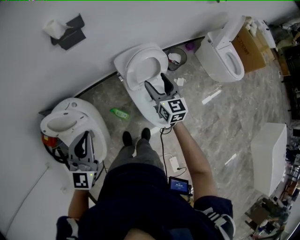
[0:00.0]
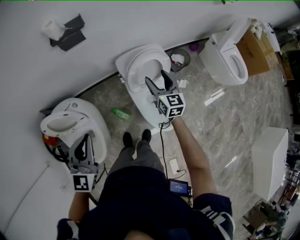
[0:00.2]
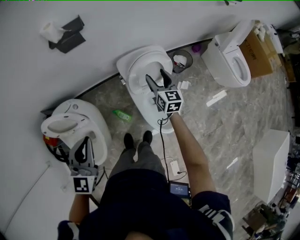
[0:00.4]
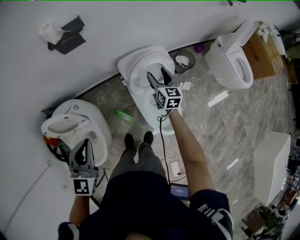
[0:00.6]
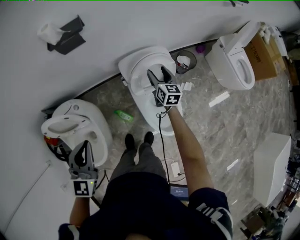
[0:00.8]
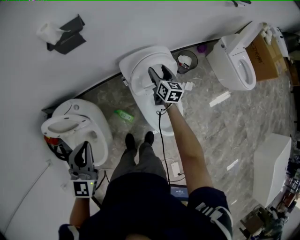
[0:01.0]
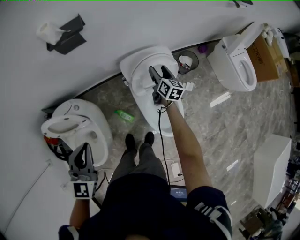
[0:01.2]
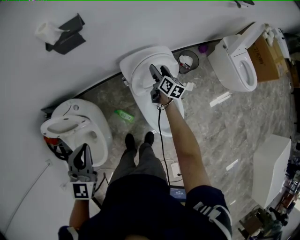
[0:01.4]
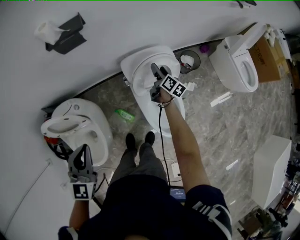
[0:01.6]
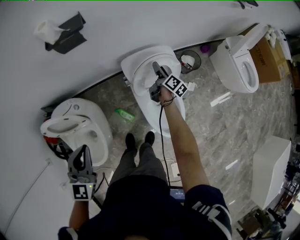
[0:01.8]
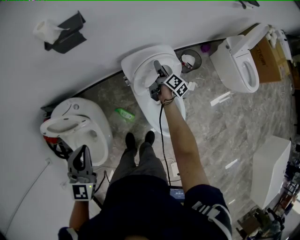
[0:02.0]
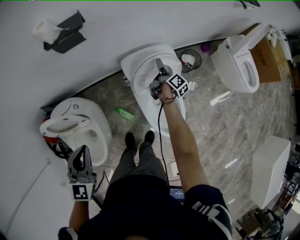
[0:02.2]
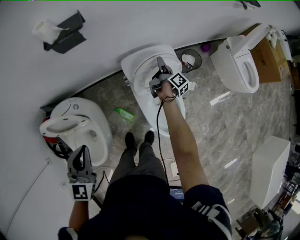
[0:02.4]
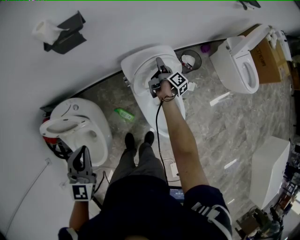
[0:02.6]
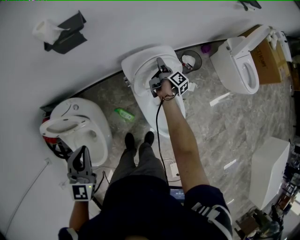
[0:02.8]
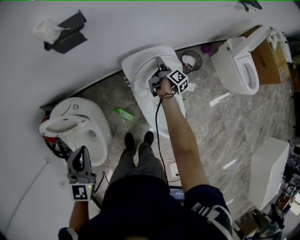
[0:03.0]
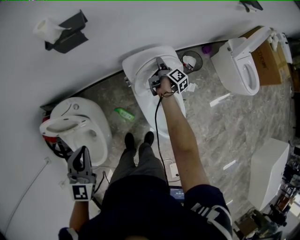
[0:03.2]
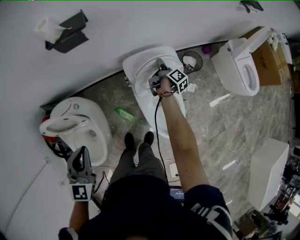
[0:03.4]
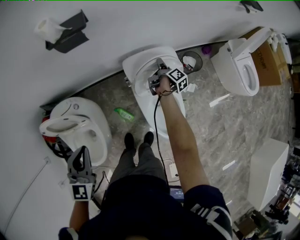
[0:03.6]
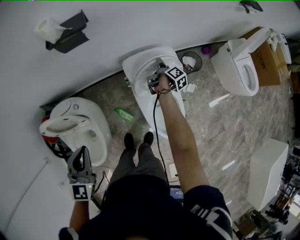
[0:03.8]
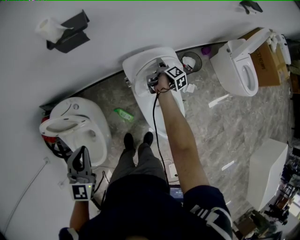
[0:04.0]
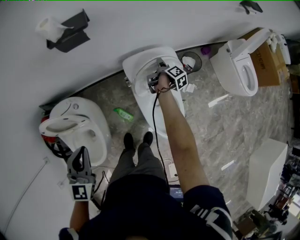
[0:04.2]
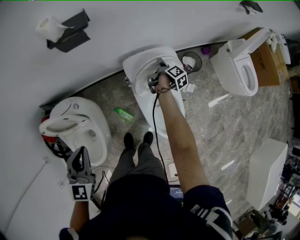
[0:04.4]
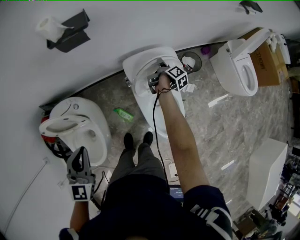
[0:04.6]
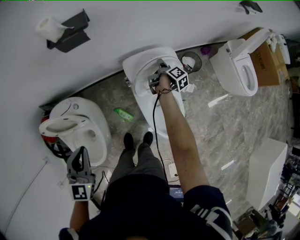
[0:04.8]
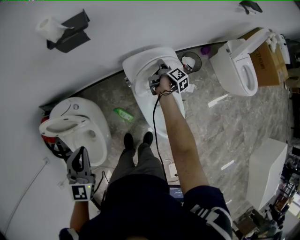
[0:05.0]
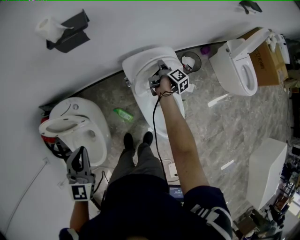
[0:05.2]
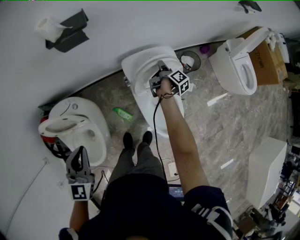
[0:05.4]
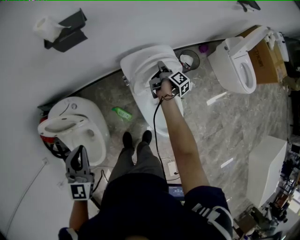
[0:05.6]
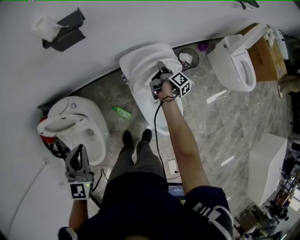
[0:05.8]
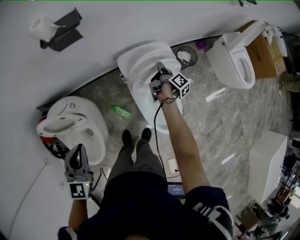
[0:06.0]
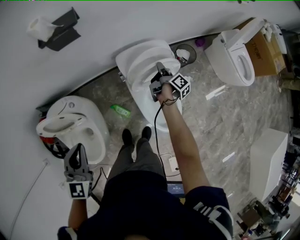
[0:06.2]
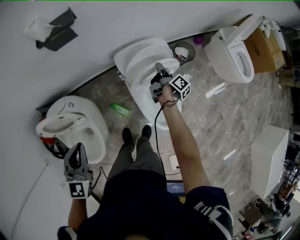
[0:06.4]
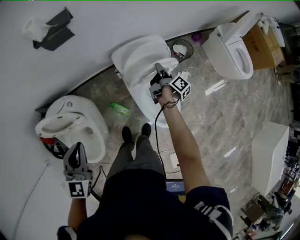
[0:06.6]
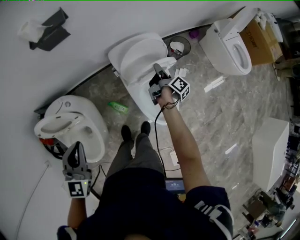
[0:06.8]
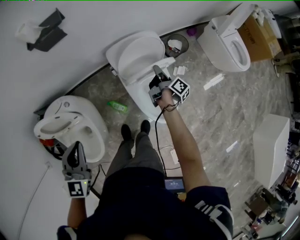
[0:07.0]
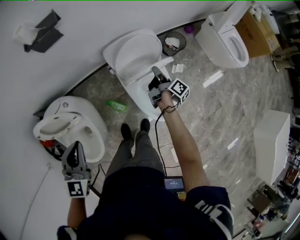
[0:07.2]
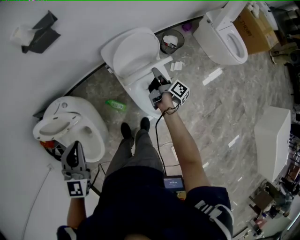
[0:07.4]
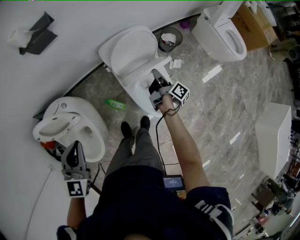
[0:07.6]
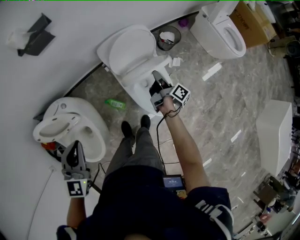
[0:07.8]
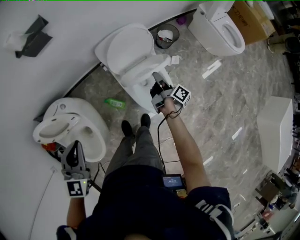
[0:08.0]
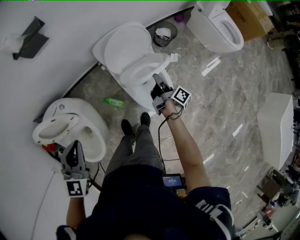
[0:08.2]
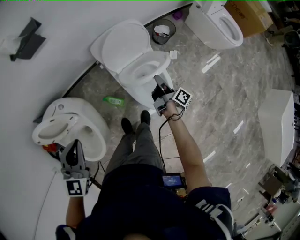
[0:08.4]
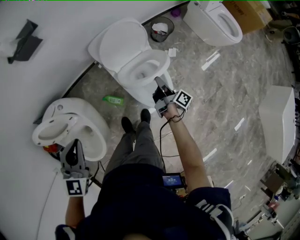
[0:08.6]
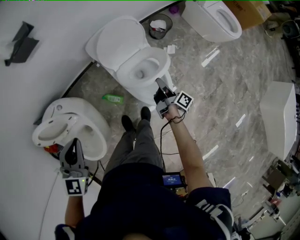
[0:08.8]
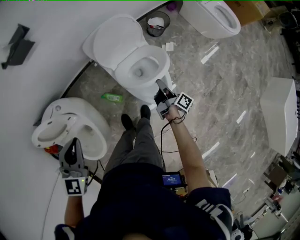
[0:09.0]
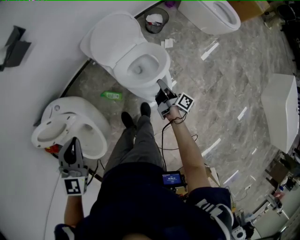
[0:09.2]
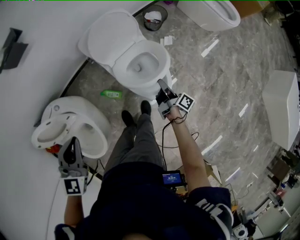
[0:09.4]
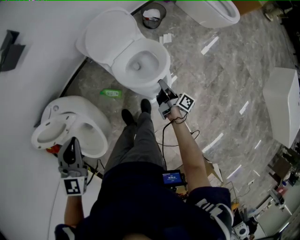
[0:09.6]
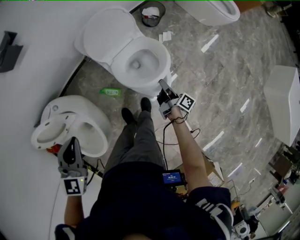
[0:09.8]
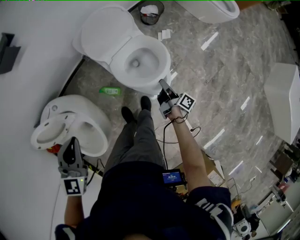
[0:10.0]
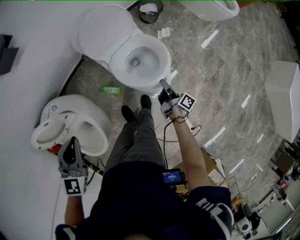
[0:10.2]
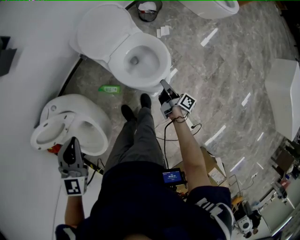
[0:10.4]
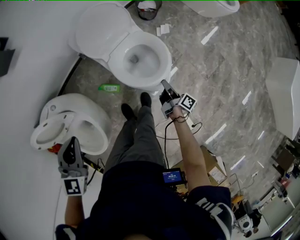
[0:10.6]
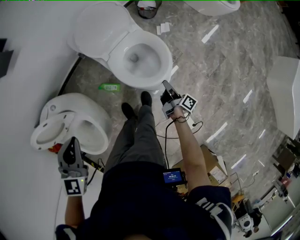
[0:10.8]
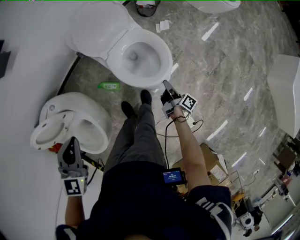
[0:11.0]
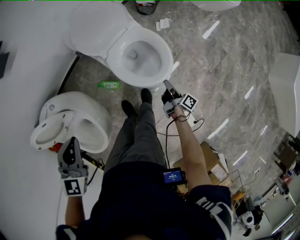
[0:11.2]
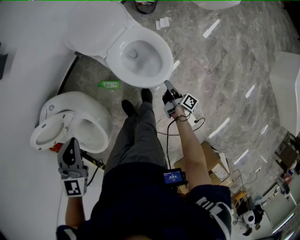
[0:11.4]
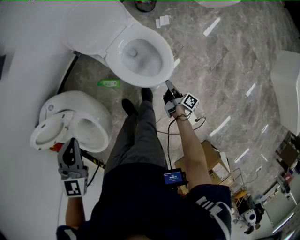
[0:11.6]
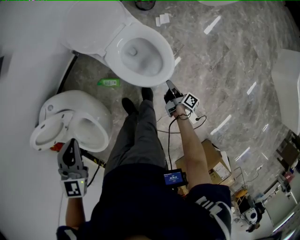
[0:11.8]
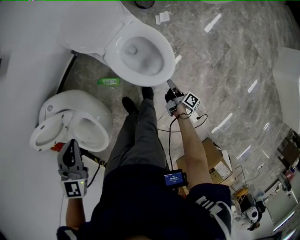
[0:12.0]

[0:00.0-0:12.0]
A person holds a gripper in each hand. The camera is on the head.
0.0 to 1.6 s: The right gripper heads forward and downward, covering approximately 30 cm, and rolls clockwise, seen from behind, by roughly 50 degrees, while the left gripper goes roughly 10 cm downward and forward.
1.6 to 3.0 s: The right gripper swivels about 30 degrees.
3.0 to 4.4 s: The grippers move only a little.
4.4 to 6.0 s: The right gripper moves backward, about 5 cm.
6.0 to 7.6 s: The left gripper moves about 5 cm. Meanwhile the right gripper is displaced backward and to the right by about 15 cm.
7.6 to 9.0 s: The right gripper shifts approximately 15 cm backward, to the right and downward. Meanwhile the left gripper ends up some 5 cm from where it was.
9.0 to 10.4 s: The right gripper moves downward, backward and to the right, about 15 cm.
10.4 to 12.0 s: The left gripper travels downward by approximately 5 cm; the right gripper is displaced downward, backward and to the right by about 15 cm.

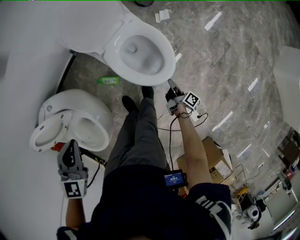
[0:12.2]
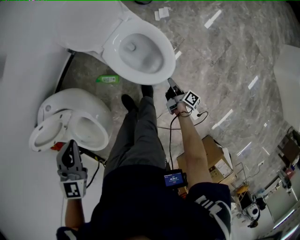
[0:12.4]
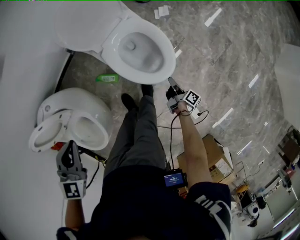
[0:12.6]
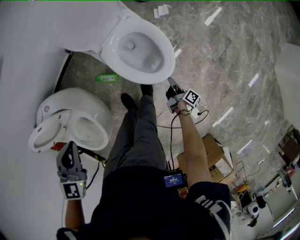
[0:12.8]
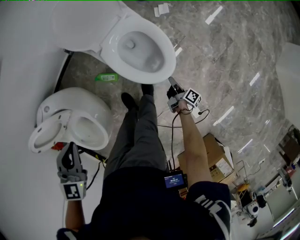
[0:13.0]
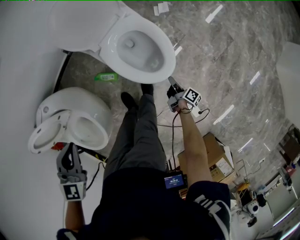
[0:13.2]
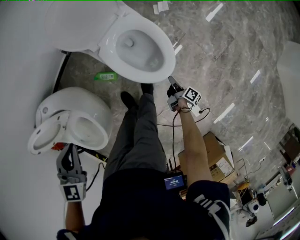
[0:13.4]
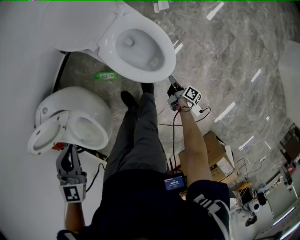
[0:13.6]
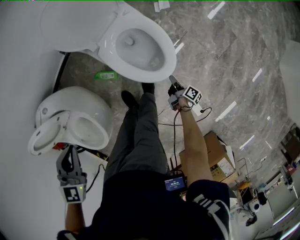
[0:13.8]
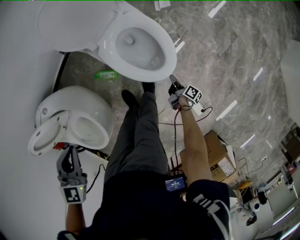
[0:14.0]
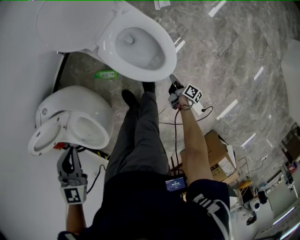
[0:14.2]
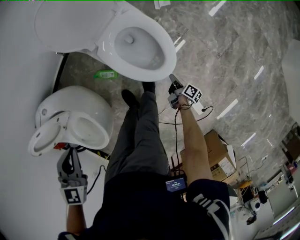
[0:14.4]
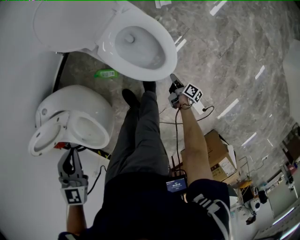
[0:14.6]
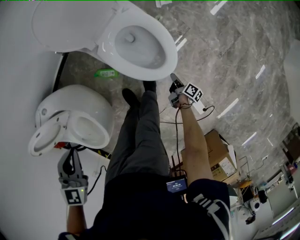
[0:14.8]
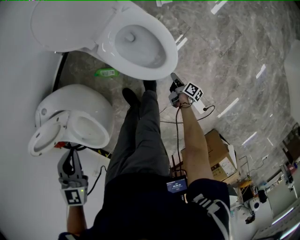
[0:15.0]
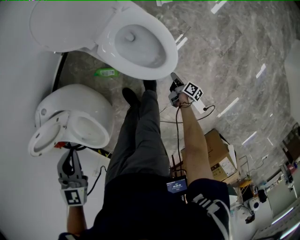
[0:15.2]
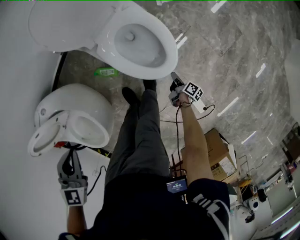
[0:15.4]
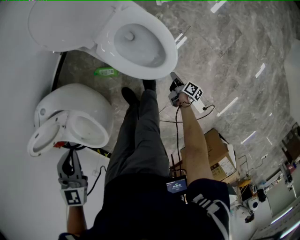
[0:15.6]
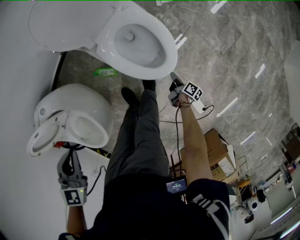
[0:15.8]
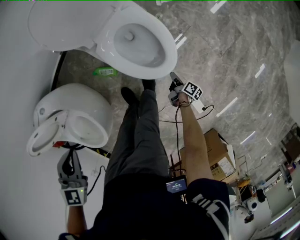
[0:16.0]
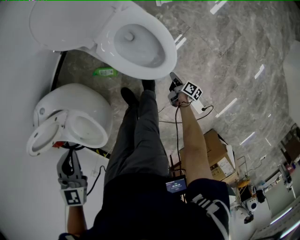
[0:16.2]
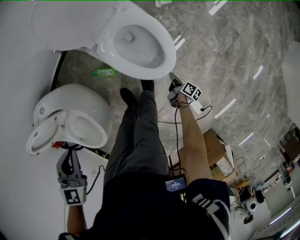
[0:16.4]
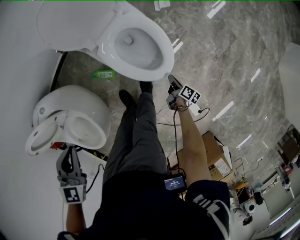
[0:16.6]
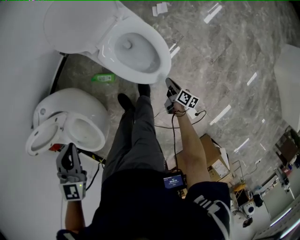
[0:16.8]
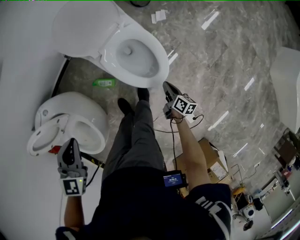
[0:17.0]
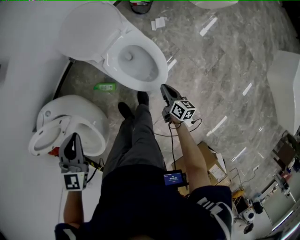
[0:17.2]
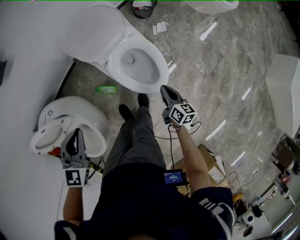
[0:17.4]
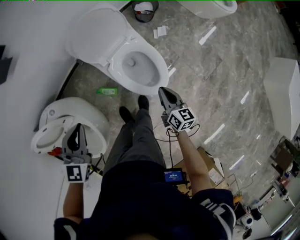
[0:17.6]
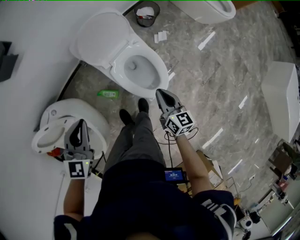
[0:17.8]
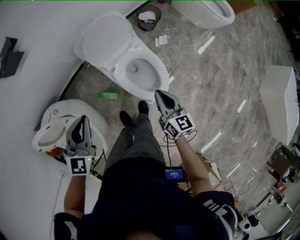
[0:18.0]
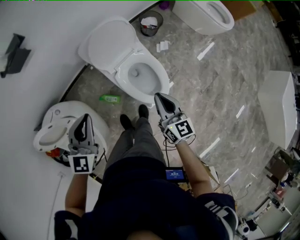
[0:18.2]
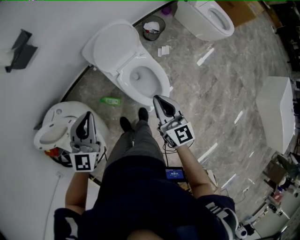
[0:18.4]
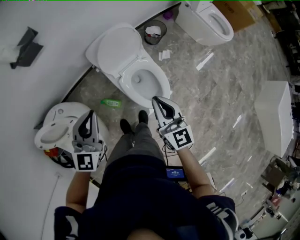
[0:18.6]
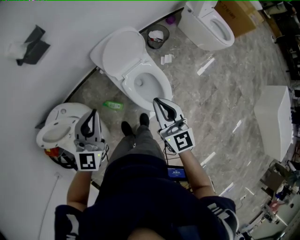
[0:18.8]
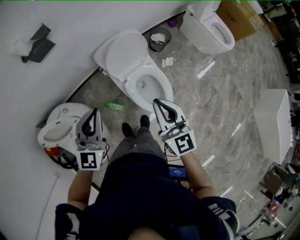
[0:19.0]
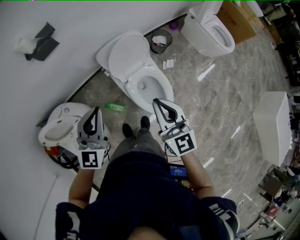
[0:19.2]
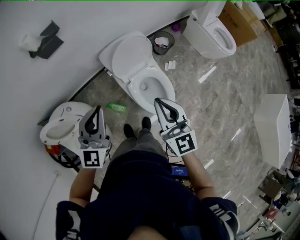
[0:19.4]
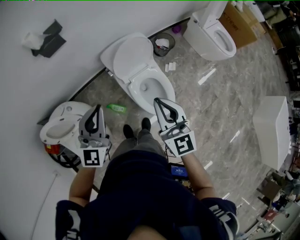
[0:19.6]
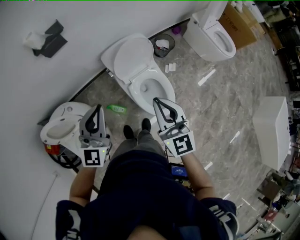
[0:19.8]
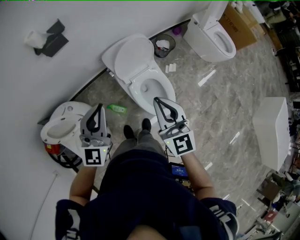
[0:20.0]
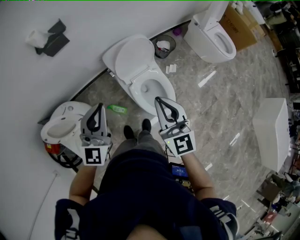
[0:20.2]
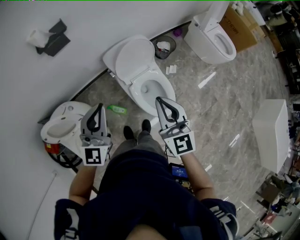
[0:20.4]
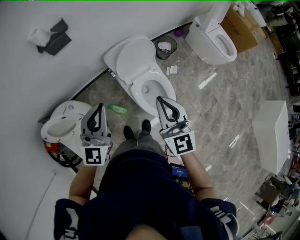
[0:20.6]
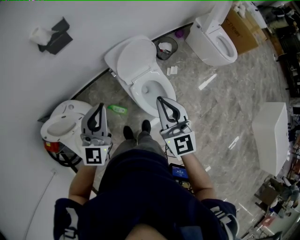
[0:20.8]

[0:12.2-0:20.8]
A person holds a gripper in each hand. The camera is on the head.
12.2 to 13.6 s: The right gripper moves downward, roughly 10 cm.
13.6 to 15.0 s: The right gripper heads downward, covering roughly 5 cm.
15.0 to 16.6 s: The grippers make only small movements.
16.6 to 18.0 s: The right gripper is displaced upward by about 40 cm, and rolls counterclockwise, seen from behind, by some 60 degrees. The left gripper goes some 15 cm upward and forward, and rotates some 30 degrees.
18.0 to 19.4 s: The right gripper is displaced upward and to the left by approximately 30 cm, and swivels some 30 degrees. The left gripper goes approximately 15 cm upward, and changes its angle by roughly 20 degrees.
19.4 to 20.8 s: The grippers make only small movements.

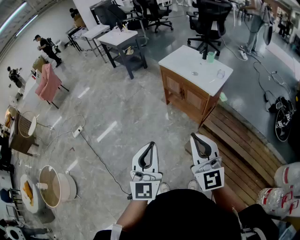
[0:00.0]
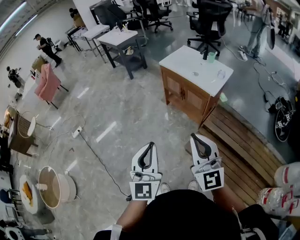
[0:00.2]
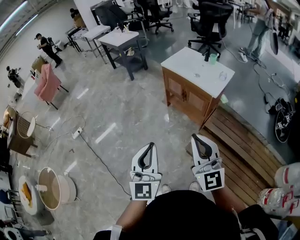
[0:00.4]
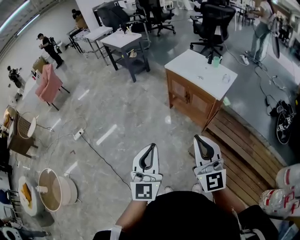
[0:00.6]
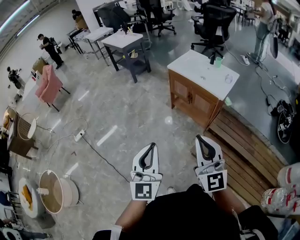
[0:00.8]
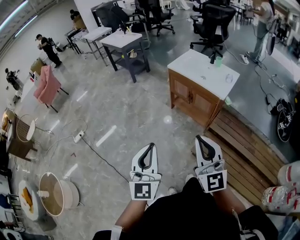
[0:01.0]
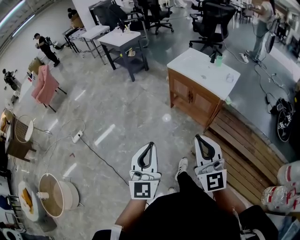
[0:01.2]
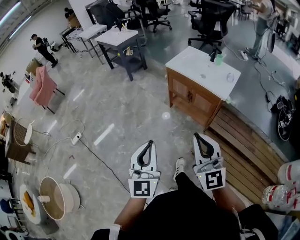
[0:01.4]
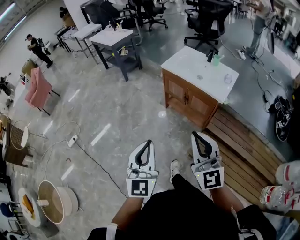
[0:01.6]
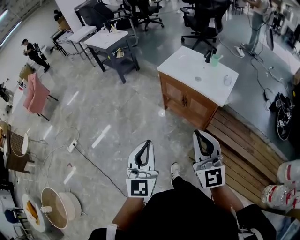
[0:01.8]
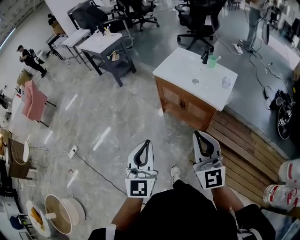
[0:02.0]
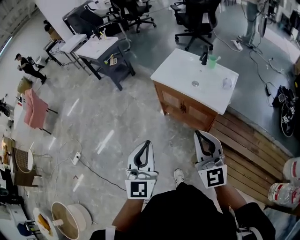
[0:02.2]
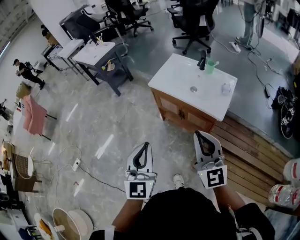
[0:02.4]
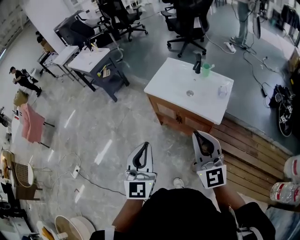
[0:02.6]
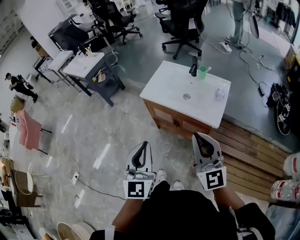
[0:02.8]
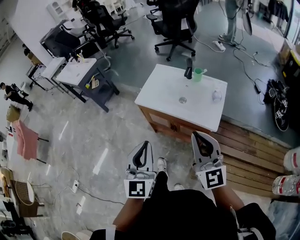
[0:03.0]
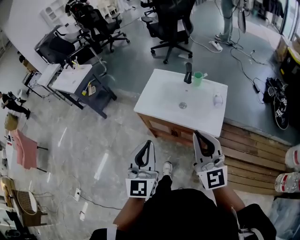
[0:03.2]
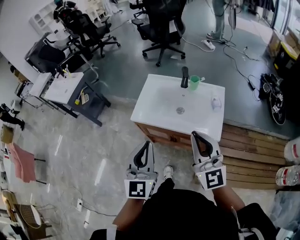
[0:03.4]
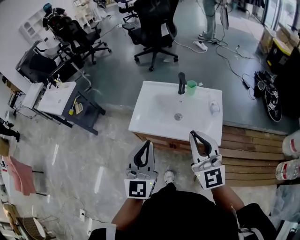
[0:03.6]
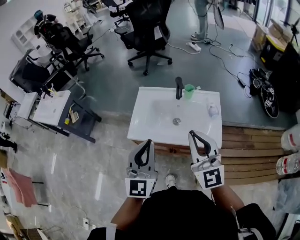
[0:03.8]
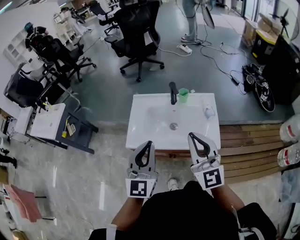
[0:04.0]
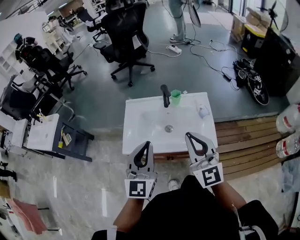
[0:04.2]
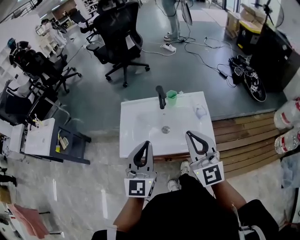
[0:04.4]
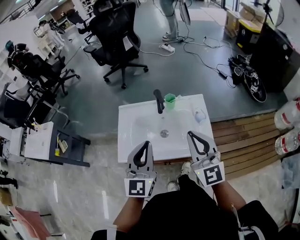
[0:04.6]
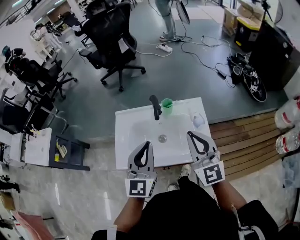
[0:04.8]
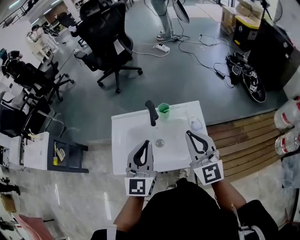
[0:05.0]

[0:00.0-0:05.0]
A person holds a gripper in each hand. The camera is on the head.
0.0 to 1.6 s: Both grippers move forward and to the left, approximately 20 cm.
1.6 to 3.4 s: The two grippers travel together, forward, some 50 cm. The left gripper turns by some 30 degrees; the right gripper turns by roughly 20 degrees.
3.4 to 5.0 s: The grippers both shift forward by approximately 30 cm. The left gripper turns by roughly 20 degrees.
